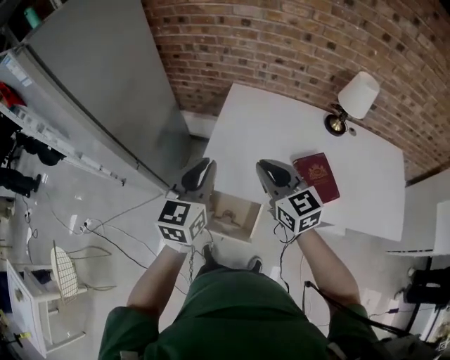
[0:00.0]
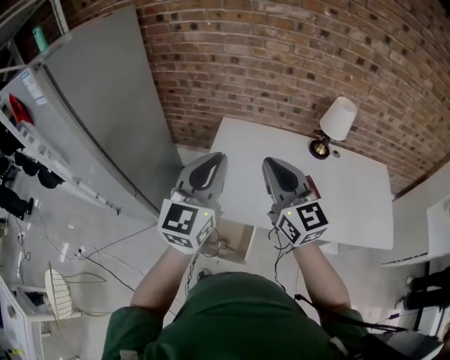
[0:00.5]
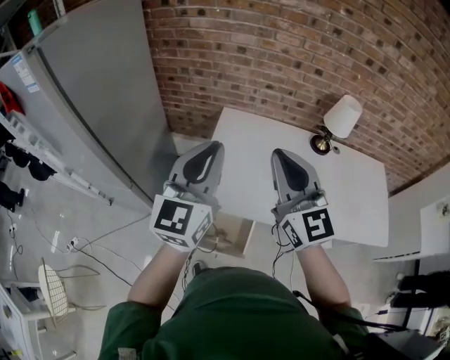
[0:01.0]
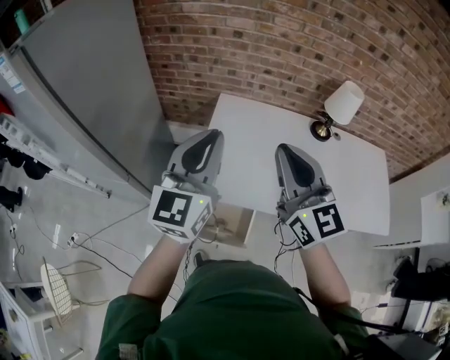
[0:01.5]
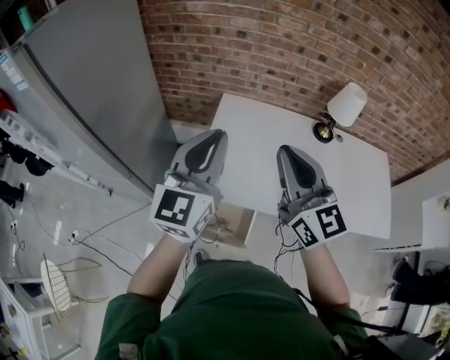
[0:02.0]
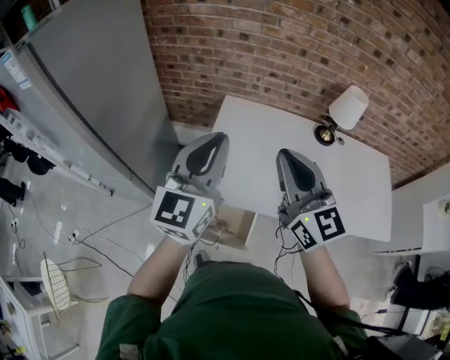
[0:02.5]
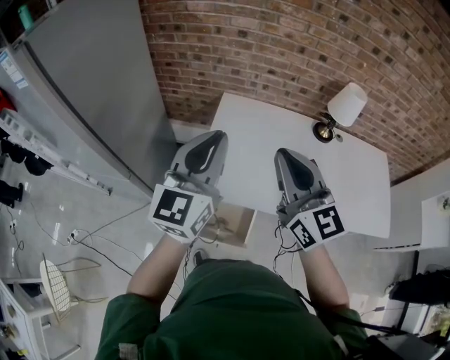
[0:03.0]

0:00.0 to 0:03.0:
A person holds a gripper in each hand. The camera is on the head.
0:00.0 to 0:01.5: The grippers both shift upward by about 15 cm. The right gripper swivels approximately 20 degrees. Meanwhile the left gripper swivels some 20 degrees.
0:01.5 to 0:03.0: Both grippers stay about where they are.

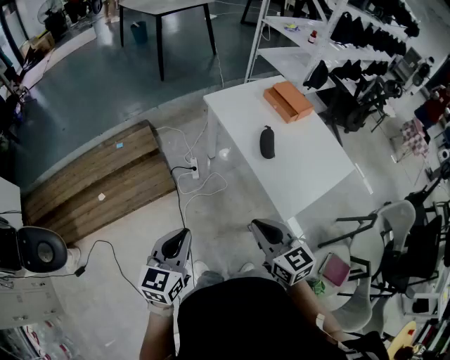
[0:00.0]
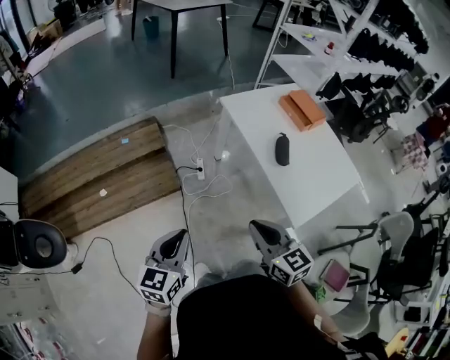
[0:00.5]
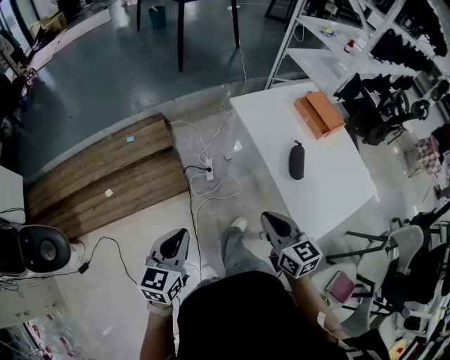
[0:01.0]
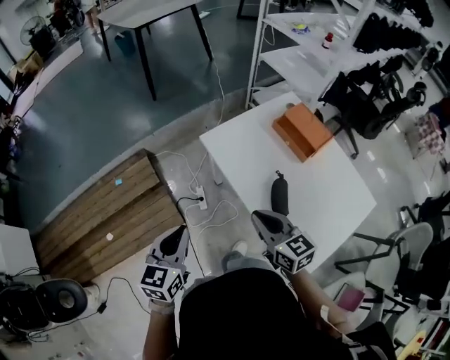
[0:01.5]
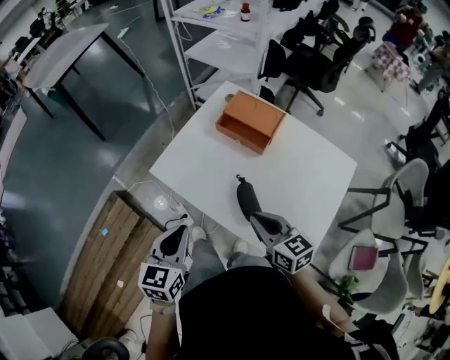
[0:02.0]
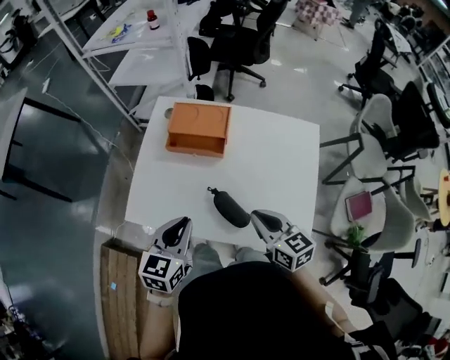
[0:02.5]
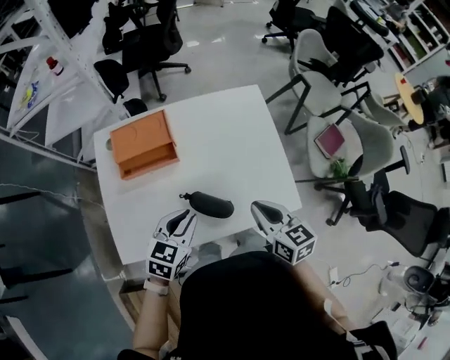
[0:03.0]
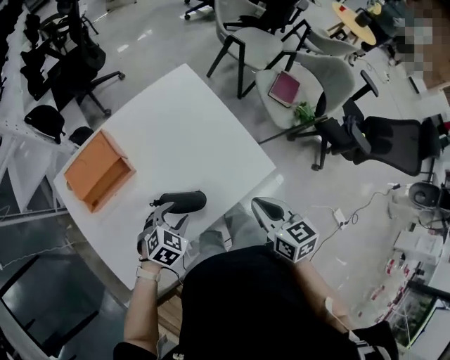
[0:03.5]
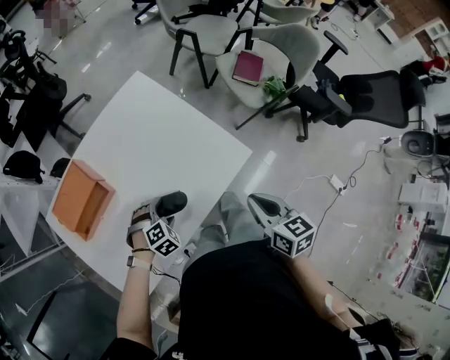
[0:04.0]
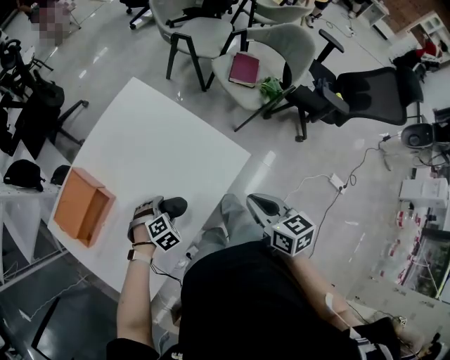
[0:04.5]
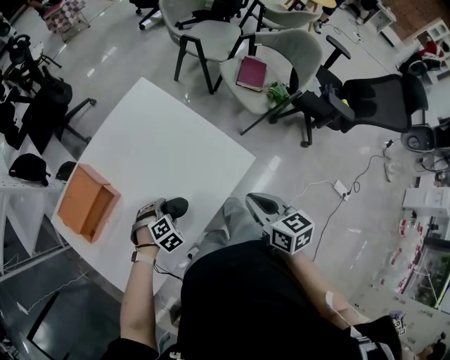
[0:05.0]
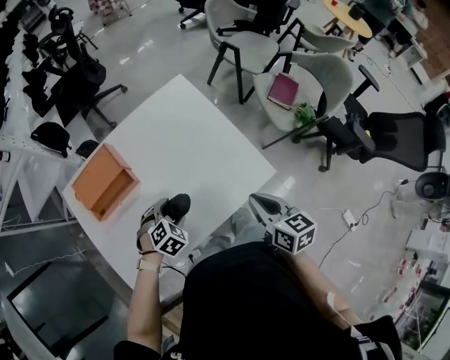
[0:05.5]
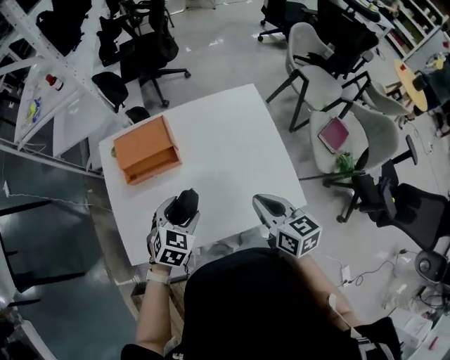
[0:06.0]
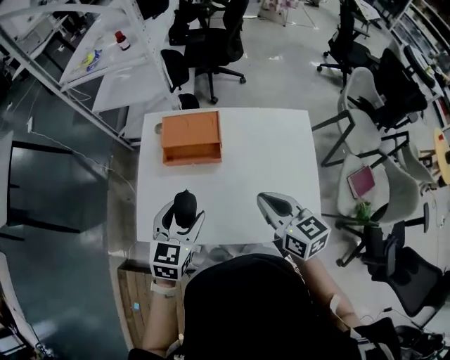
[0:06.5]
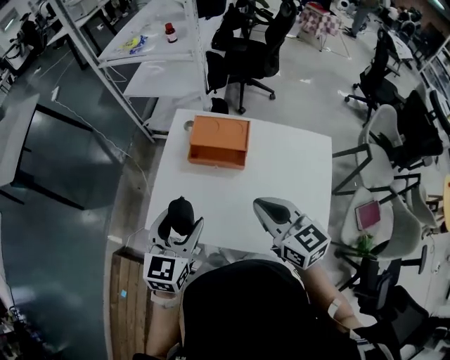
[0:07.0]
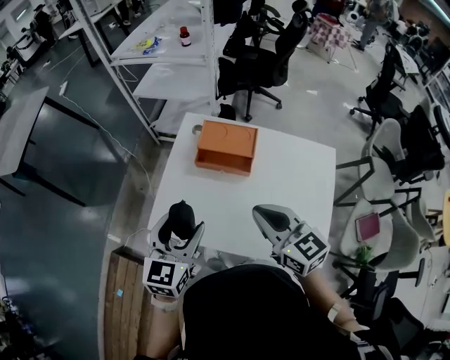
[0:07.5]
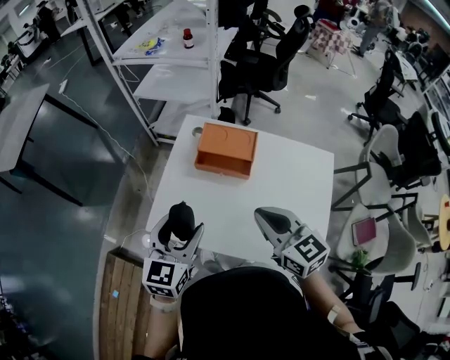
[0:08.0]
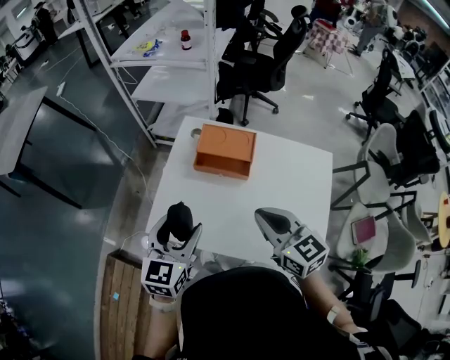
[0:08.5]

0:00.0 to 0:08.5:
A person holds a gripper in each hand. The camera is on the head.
0:00.0 to 0:02.0: The right gripper heads forward and to the right, covering approximately 40 cm, and changes its angle by some 30 degrees, while the left gripper shifts roughly 40 cm forward, and changes its angle by about 30 degrees.
0:02.0 to 0:04.0: The right gripper changes place by some 25 cm, and turns by about 90 degrees. The left gripper moves downward, approximately 25 cm, points its fingers approximately 40 degrees further downward, and opens its fingers.
0:04.0 to 0:06.5: The right gripper moves about 30 cm, and changes its angle by about 60 degrees. The left gripper heads upward, covering some 25 cm, and rotates around the line of its fingers by roughly 70 degrees, counterclockwise from behind.
0:06.5 to 0:08.5: The right gripper shifts some 10 cm to the left, and rotates about 20 degrees, while the left gripper shifts approximately 10 cm to the left and upward, and turns by some 20 degrees.

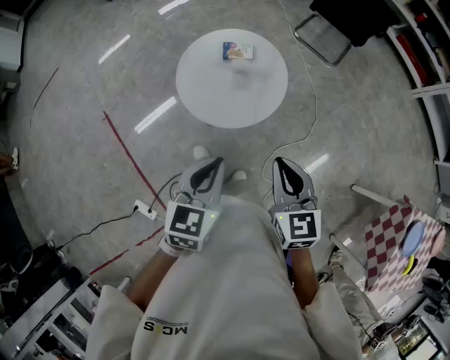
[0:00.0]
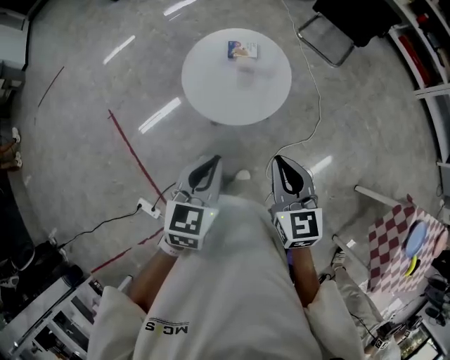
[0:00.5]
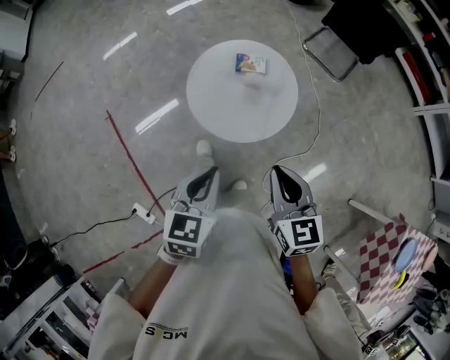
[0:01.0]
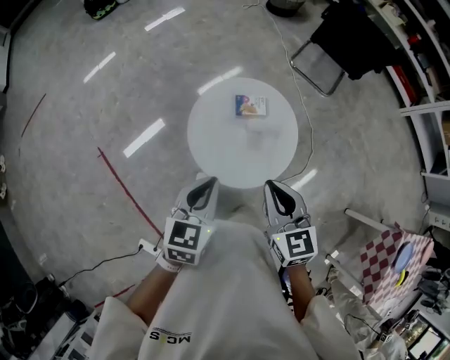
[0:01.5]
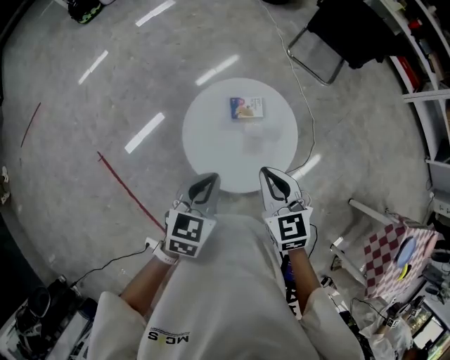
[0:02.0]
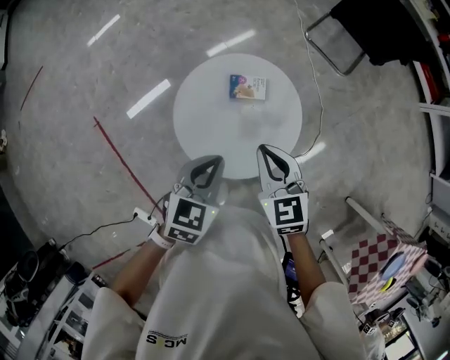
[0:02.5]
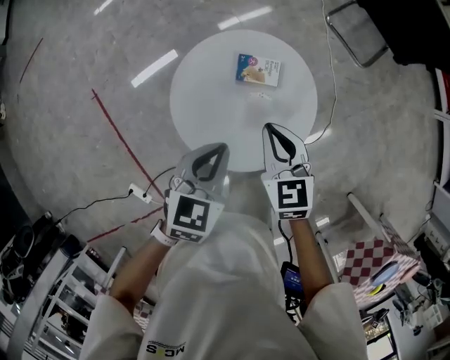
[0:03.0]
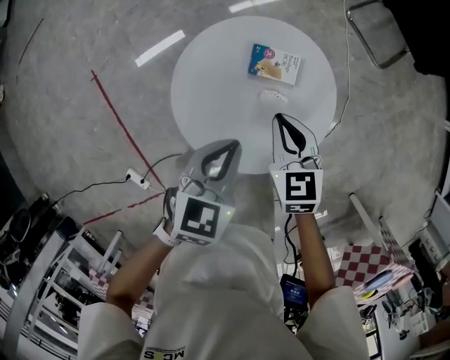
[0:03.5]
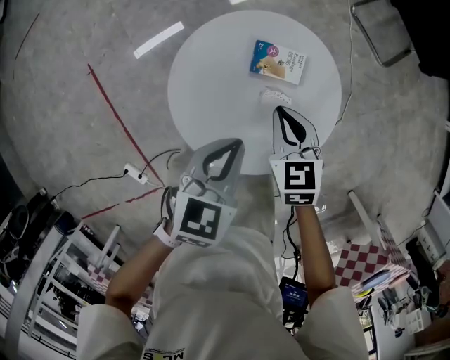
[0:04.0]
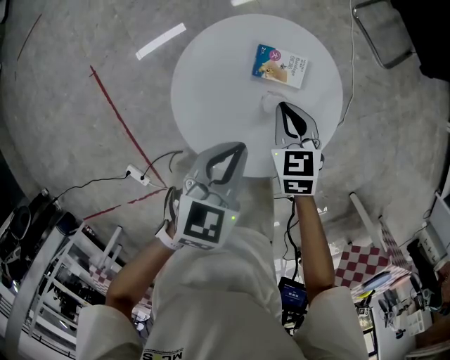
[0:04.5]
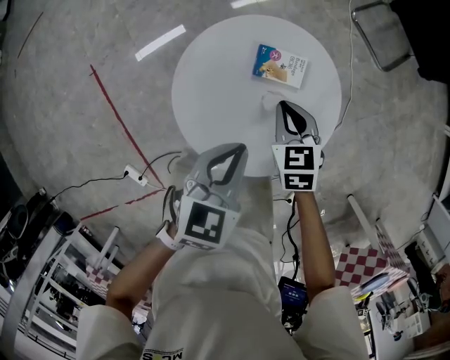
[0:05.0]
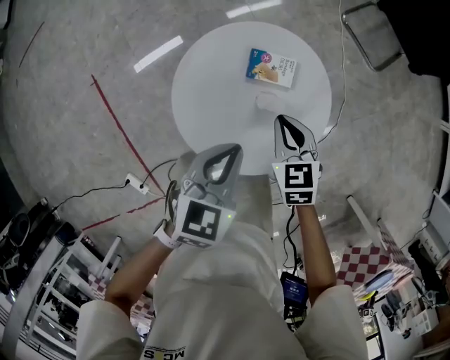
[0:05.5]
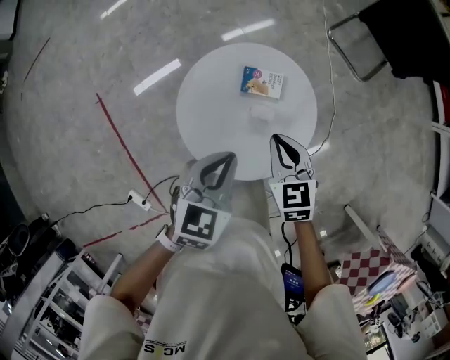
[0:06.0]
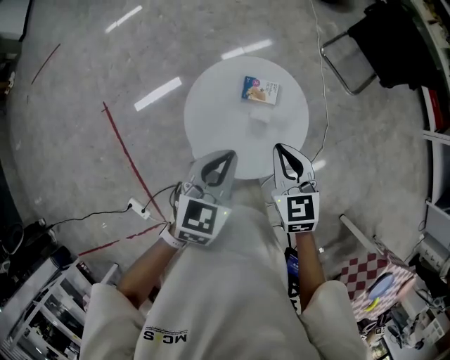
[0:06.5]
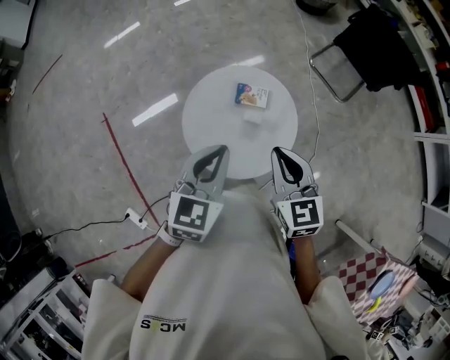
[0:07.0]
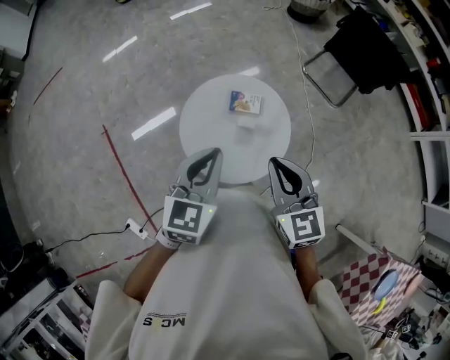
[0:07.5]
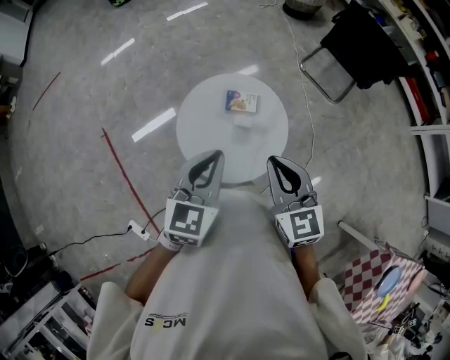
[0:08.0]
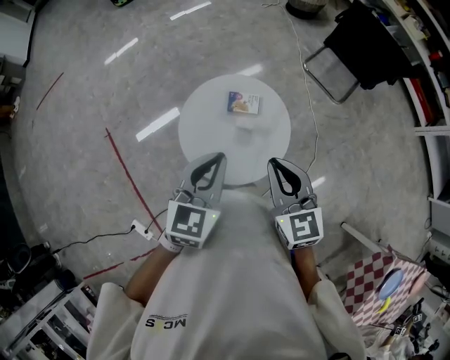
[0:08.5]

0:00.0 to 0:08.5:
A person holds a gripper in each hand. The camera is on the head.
0:00.0 to 0:02.0: Both grippers move forward and to the left, approximately 30 cm.
0:02.0 to 0:04.0: The left gripper heads downward, covering roughly 20 cm. Meanwhile the right gripper is displaced downward and forward by about 30 cm.
0:04.0 to 0:06.5: The left gripper goes approximately 20 cm upward. Meanwhile the right gripper heads upward and backward, covering about 25 cm.
0:06.5 to 0:08.5: The left gripper travels upward by about 10 cm. Meanwhile the right gripper shifts about 15 cm upward and backward.

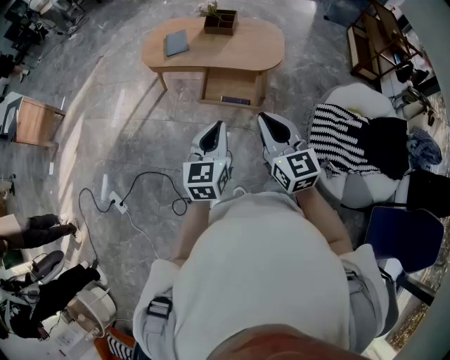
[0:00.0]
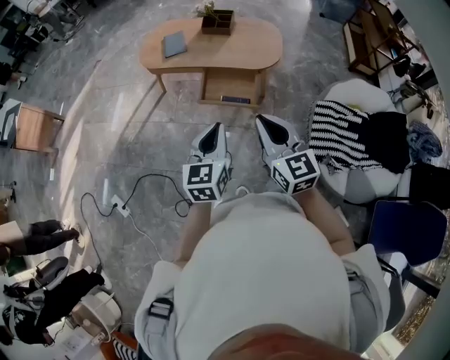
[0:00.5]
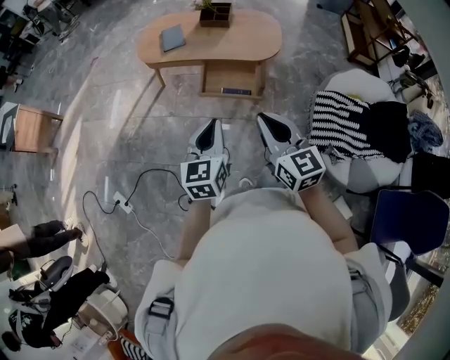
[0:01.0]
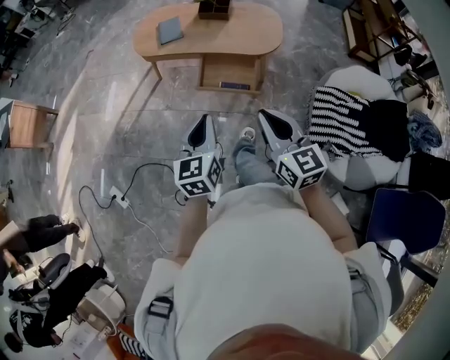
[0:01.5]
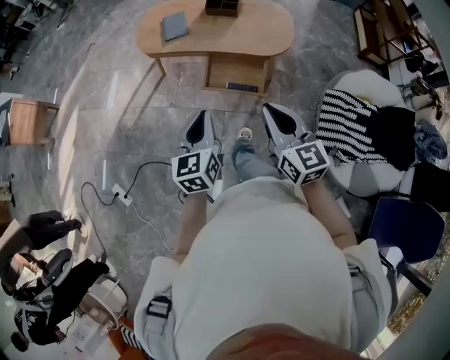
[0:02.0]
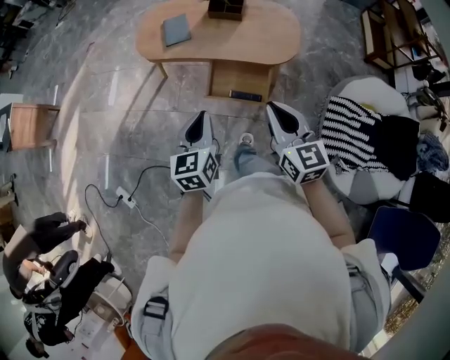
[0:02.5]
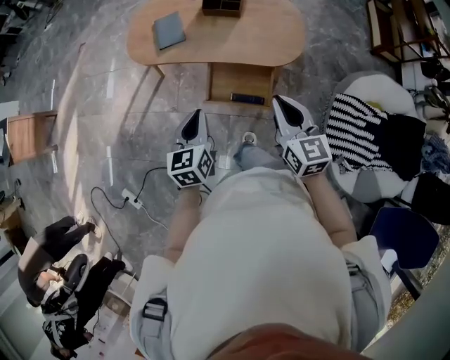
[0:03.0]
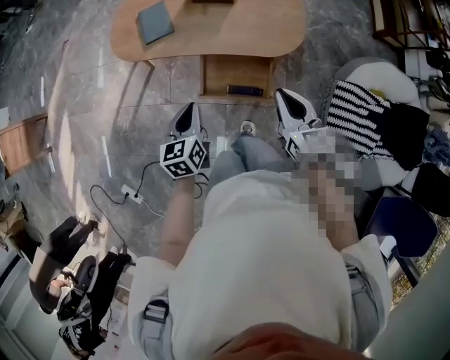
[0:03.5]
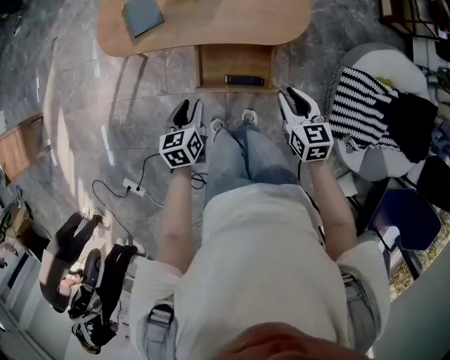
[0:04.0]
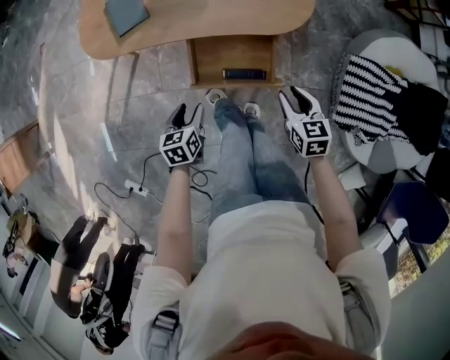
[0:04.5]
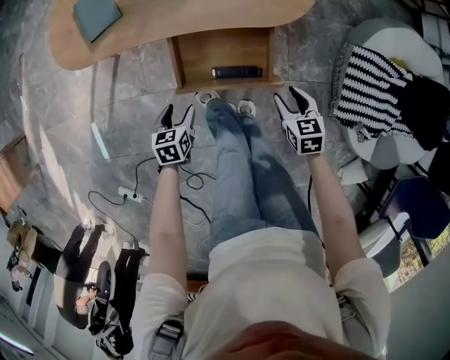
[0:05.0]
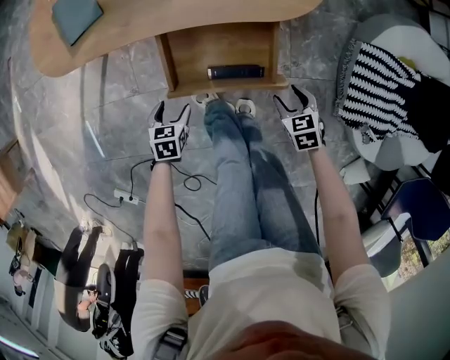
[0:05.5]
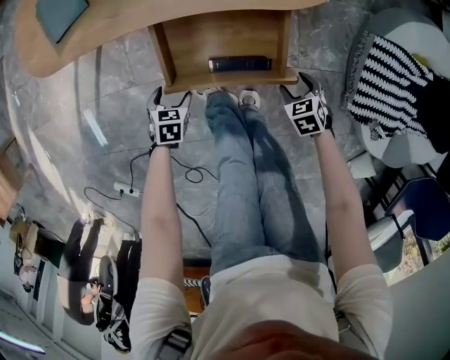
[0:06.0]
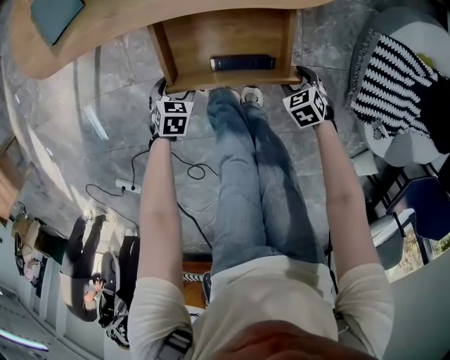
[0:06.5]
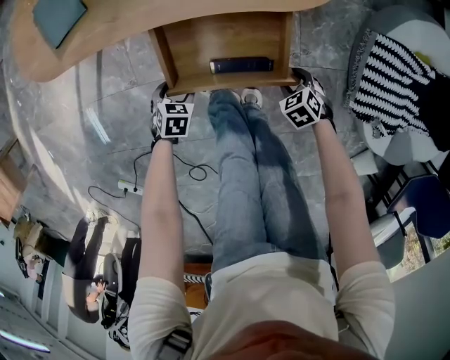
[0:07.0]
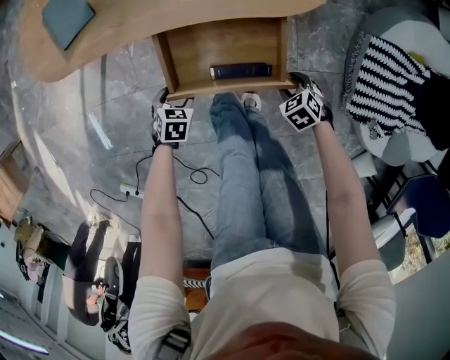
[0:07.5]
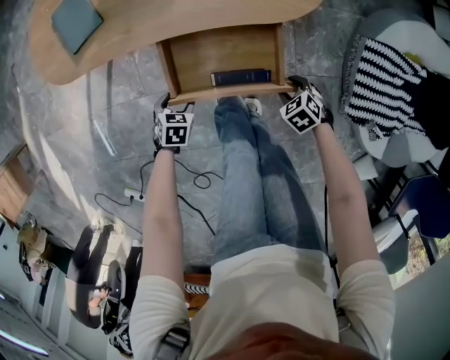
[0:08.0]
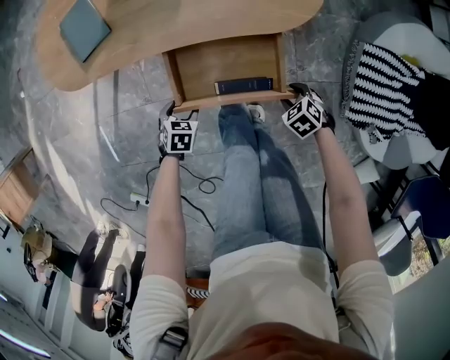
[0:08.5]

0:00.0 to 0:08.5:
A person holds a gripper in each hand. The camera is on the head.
0:00.0 to 0:02.0: The right gripper shifts roughly 5 cm forward; the left gripper heads forward and to the left, covering approximately 10 cm.
0:02.0 to 0:04.0: The grippers both shift forward and downward by about 35 cm. The right gripper swivels approximately 30 degrees, and opens; the left gripper swivels roughly 30 degrees, and opens its fingers.
0:04.0 to 0:06.5: The two grippers go some 40 cm downward. The right gripper angles its fingers downward, by roughly 40 degrees, and opens, while the left gripper swivels approximately 40 degrees, and opens its fingers.
0:06.5 to 0:08.5: Both grippers move upward, about 5 cm.
